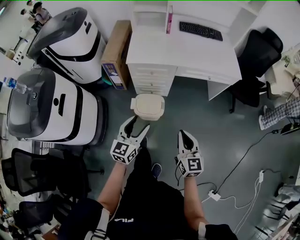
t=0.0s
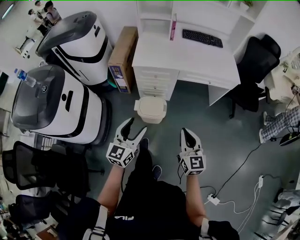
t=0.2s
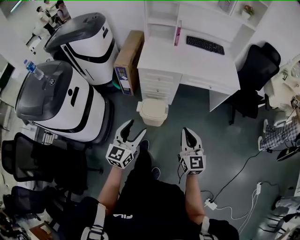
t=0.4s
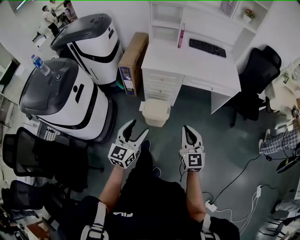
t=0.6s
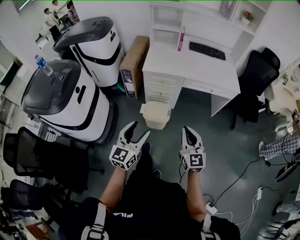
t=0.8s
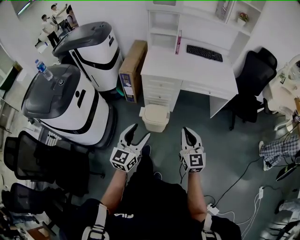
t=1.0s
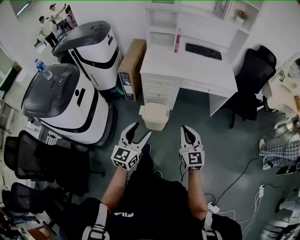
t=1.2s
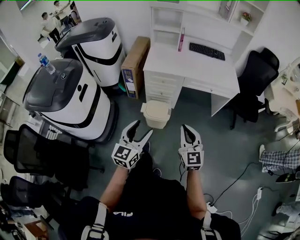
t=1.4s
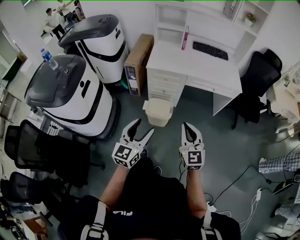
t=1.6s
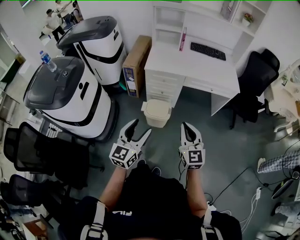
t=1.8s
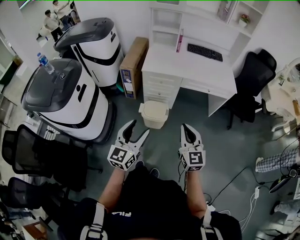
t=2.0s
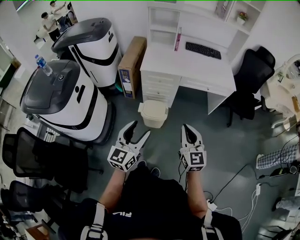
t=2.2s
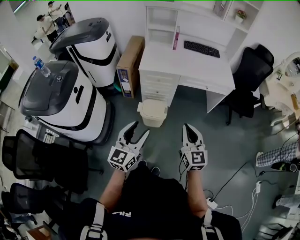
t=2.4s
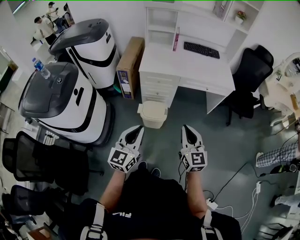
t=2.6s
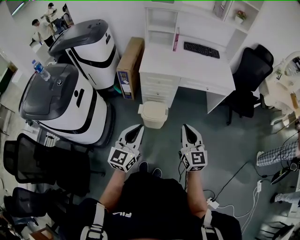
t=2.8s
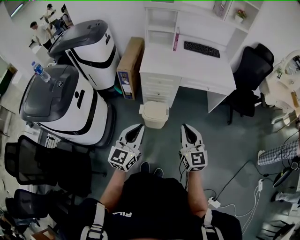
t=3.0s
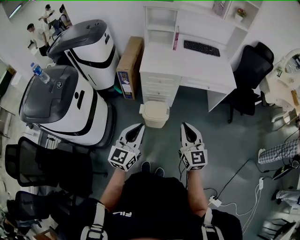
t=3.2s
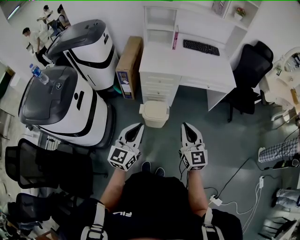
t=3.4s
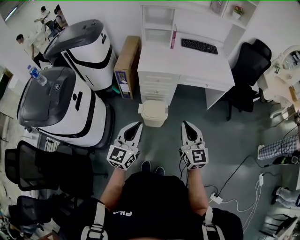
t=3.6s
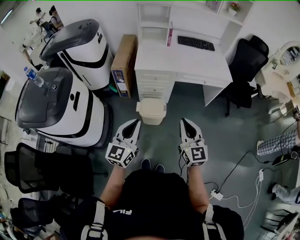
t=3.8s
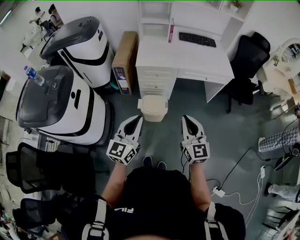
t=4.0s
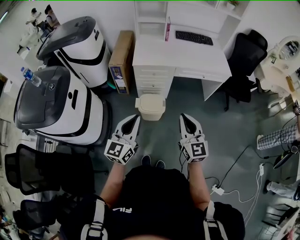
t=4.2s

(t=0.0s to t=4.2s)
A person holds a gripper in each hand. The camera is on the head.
t=0.0s - t=1.4s: Both grippers travel together backward and upward, about 20 cm.
t=1.4s - t=2.8s: The left gripper moves some 5 cm, and closes.
t=2.8s - t=4.2s: The grippers make only small movements.

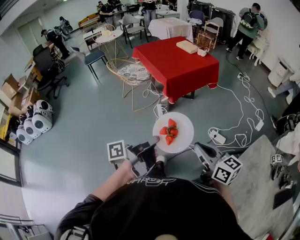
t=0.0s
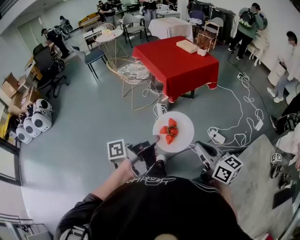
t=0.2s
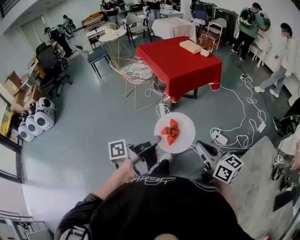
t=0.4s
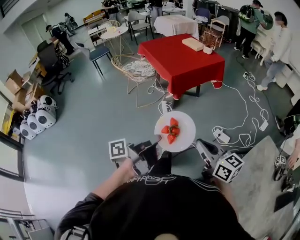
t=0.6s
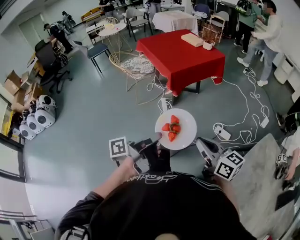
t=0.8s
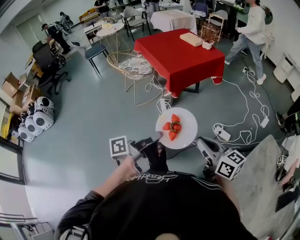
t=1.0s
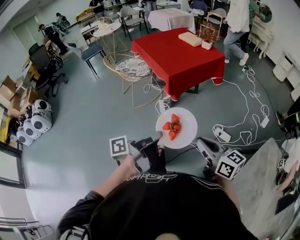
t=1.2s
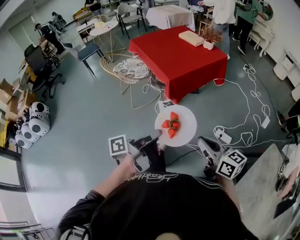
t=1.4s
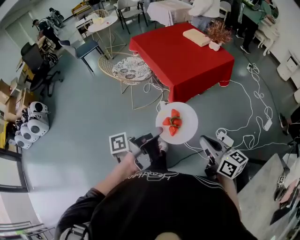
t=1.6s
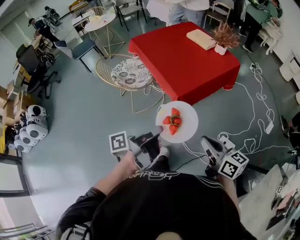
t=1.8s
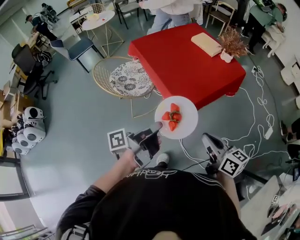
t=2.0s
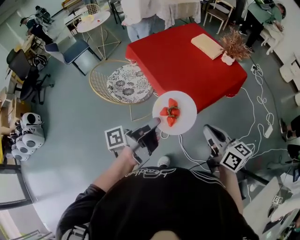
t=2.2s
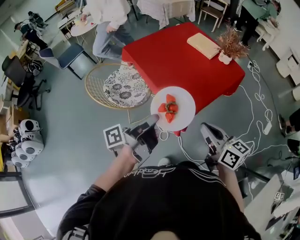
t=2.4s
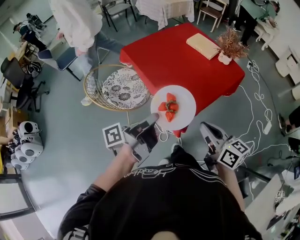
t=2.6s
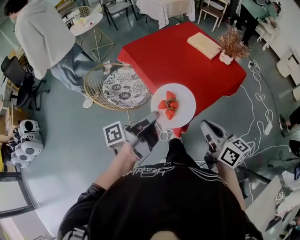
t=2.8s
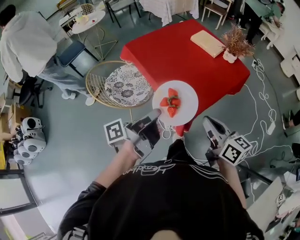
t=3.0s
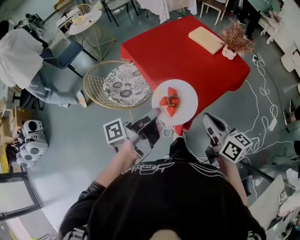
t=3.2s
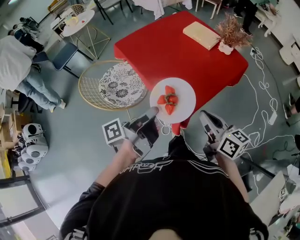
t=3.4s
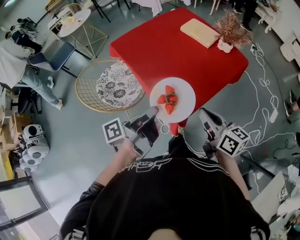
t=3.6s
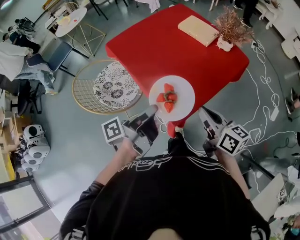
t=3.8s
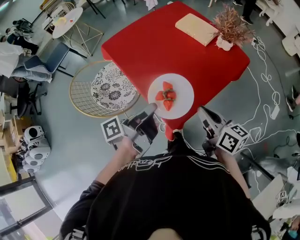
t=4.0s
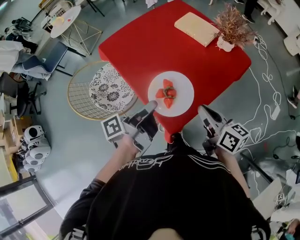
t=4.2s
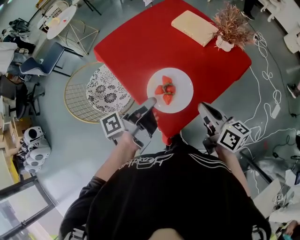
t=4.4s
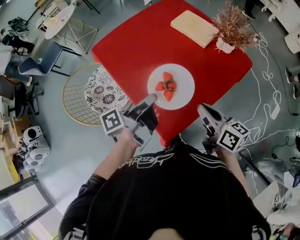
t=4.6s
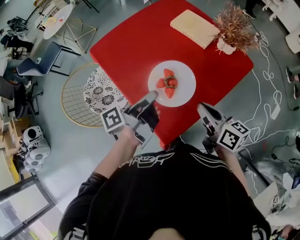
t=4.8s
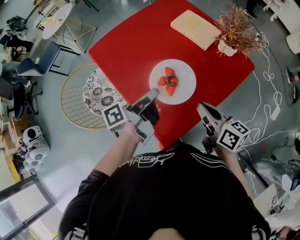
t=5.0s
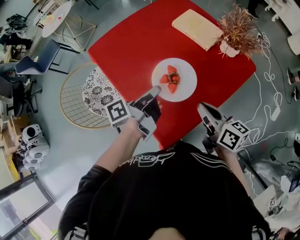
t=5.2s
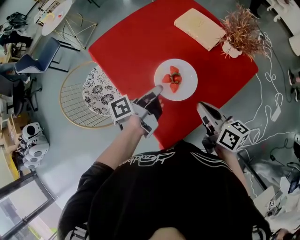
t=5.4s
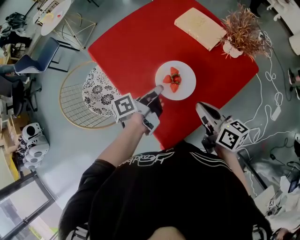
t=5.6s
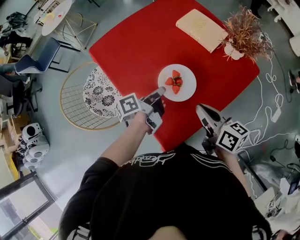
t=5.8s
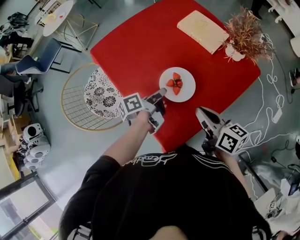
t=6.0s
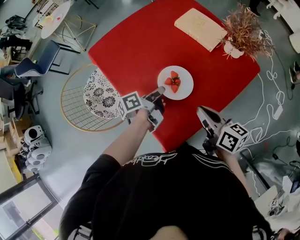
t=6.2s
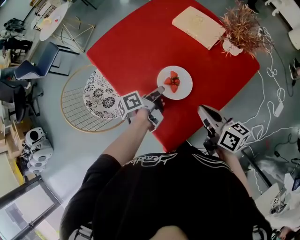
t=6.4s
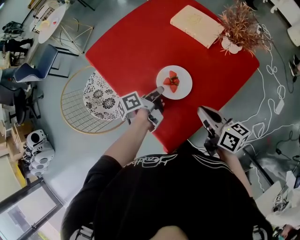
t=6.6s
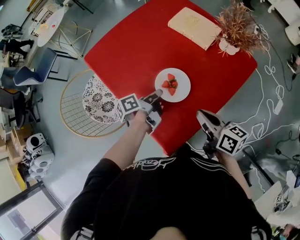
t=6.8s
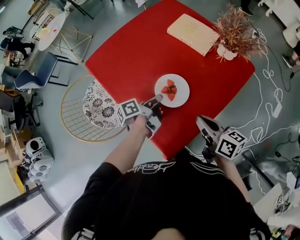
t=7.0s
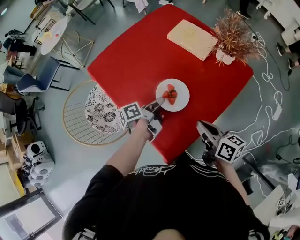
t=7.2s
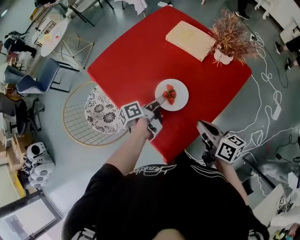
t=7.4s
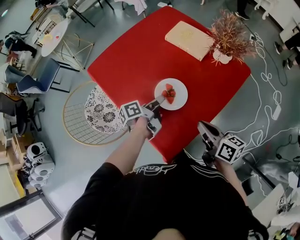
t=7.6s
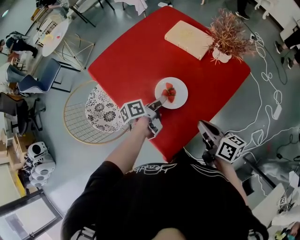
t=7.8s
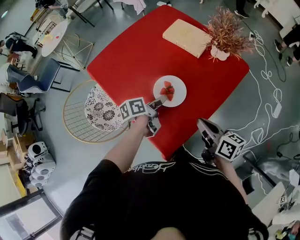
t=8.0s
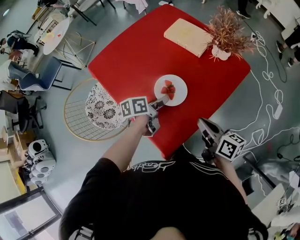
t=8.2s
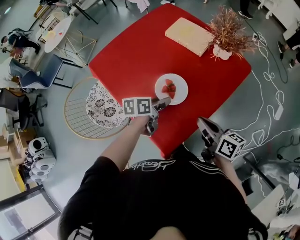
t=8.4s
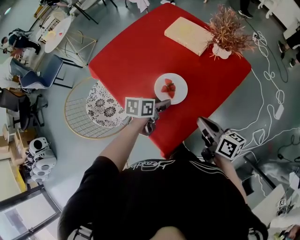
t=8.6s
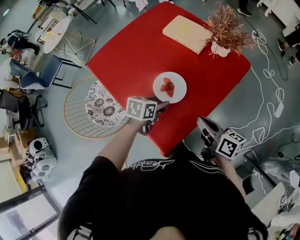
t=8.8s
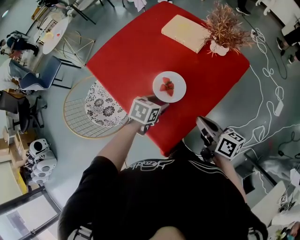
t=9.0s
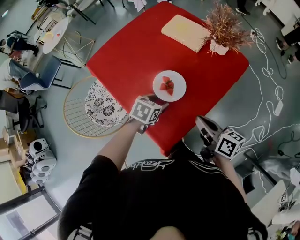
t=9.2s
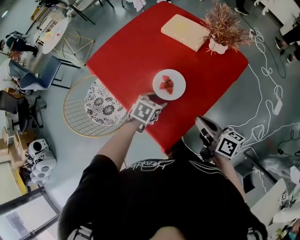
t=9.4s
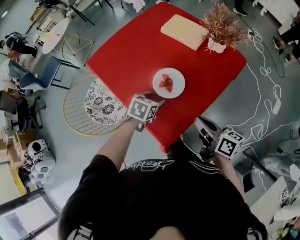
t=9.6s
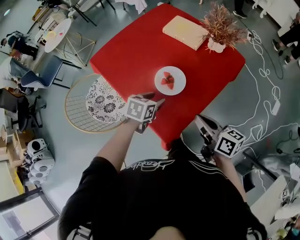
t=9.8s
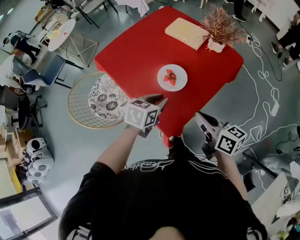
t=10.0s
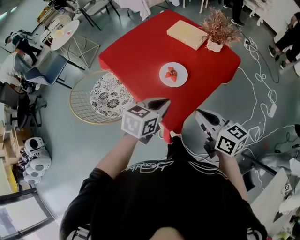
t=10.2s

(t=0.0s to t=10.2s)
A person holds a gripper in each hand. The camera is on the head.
t=0.0s - t=1.4s: Both grippers travel together forward, some 15 cm.
t=1.4s - t=3.0s: The two grippers travel together, forward, some 40 cm.
t=3.0s - t=4.4s: Both grippers travel together forward and to the right, approximately 20 cm.
t=4.4s - t=5.8s: The left gripper travels forward and downward by roughly 15 cm; the right gripper goes some 5 cm forward.
t=5.8s - t=7.2s: The left gripper opens its fingers.
t=7.2s - t=8.8s: The left gripper changes place by roughly 5 cm, twists approximately 60 degrees clockwise, seen from behind, and opens its fingers.
t=8.8s - t=10.2s: The right gripper travels backward and upward by approximately 15 cm, and turns by roughly 20 degrees, while the left gripper shifts some 20 cm upward and backward, changes its angle by about 20 degrees, and closes.

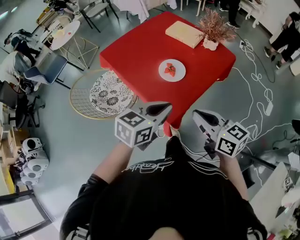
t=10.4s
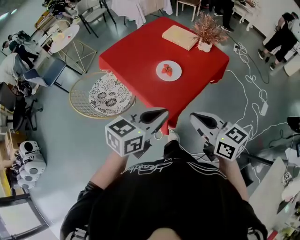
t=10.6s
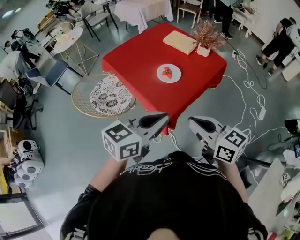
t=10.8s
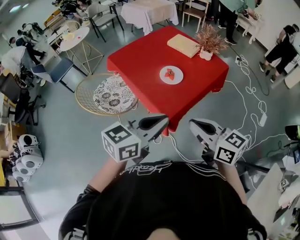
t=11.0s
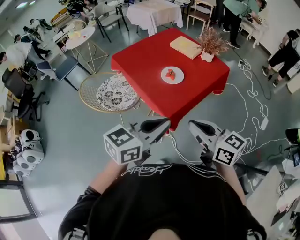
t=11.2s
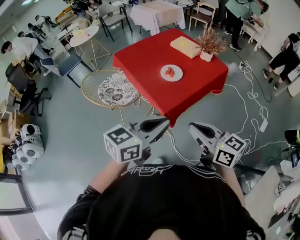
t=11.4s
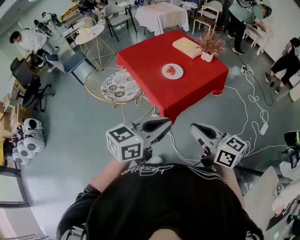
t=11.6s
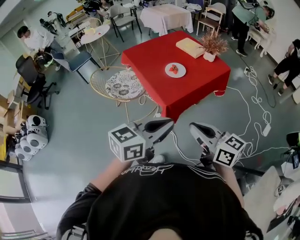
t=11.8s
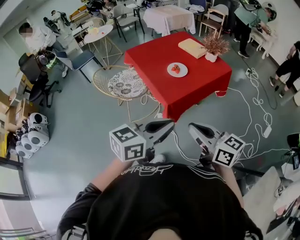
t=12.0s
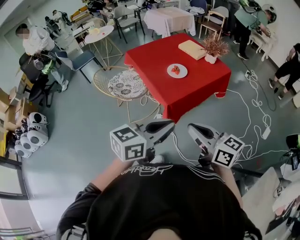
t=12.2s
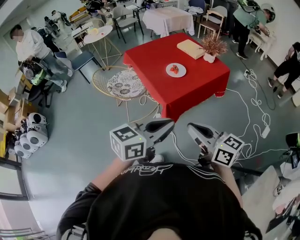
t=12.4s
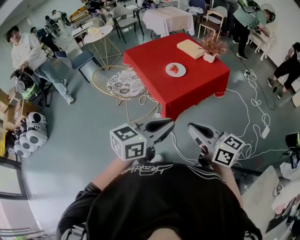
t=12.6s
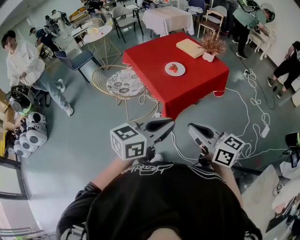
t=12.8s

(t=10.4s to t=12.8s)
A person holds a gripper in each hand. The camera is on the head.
t=10.4s - t=11.6s: The left gripper travels backward and upward by roughly 25 cm. The right gripper shifts approximately 20 cm backward.
t=11.6s - t=12.8s: The grippers stay close to where they were, moving slightly.

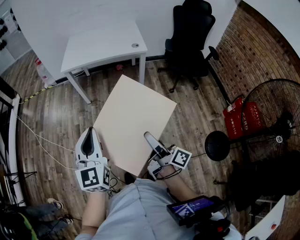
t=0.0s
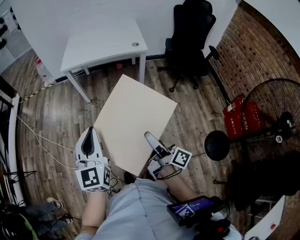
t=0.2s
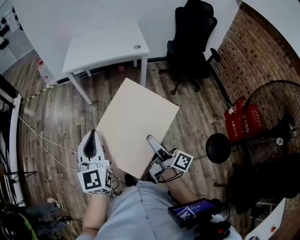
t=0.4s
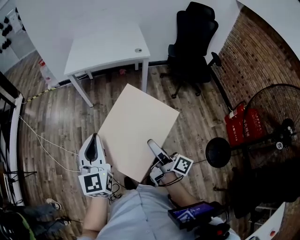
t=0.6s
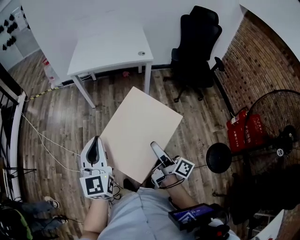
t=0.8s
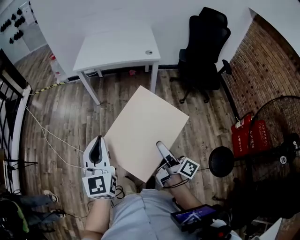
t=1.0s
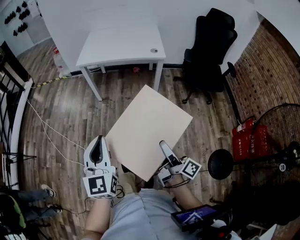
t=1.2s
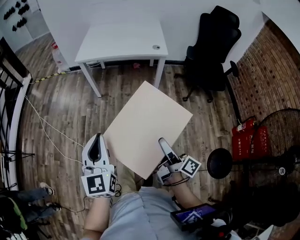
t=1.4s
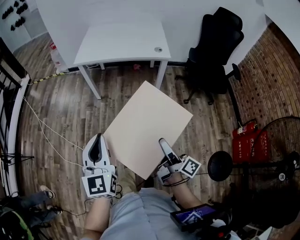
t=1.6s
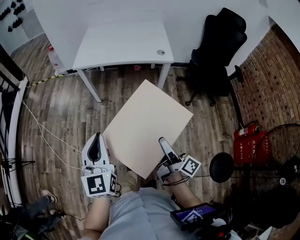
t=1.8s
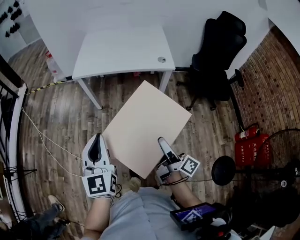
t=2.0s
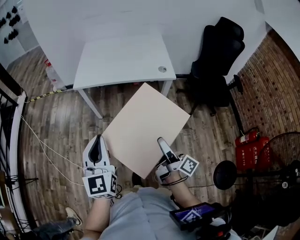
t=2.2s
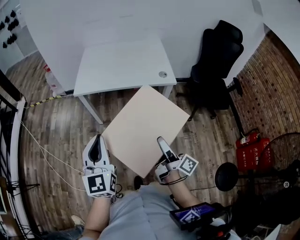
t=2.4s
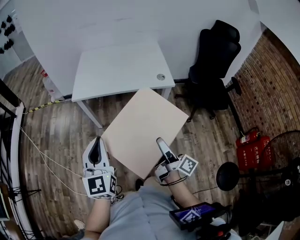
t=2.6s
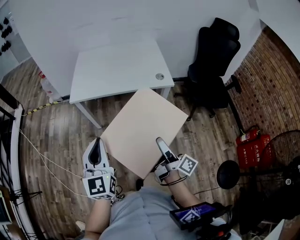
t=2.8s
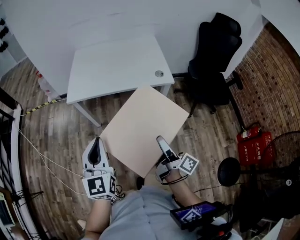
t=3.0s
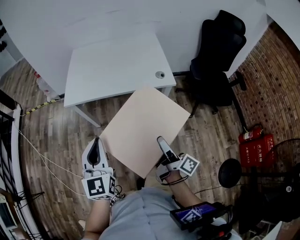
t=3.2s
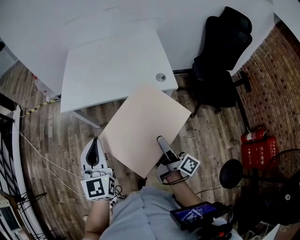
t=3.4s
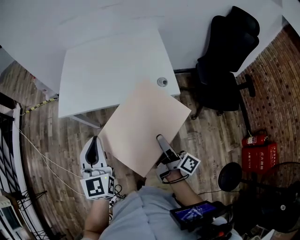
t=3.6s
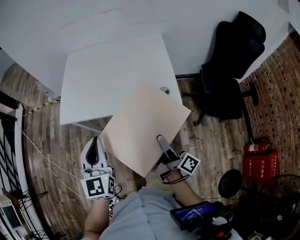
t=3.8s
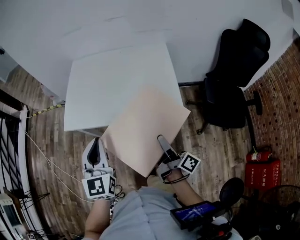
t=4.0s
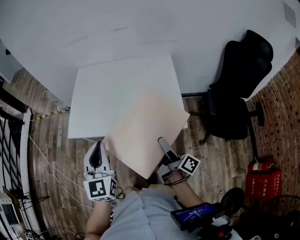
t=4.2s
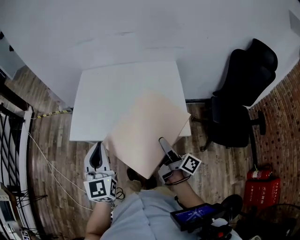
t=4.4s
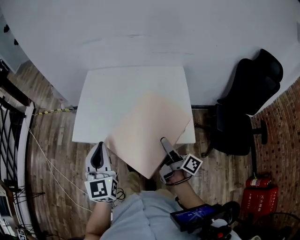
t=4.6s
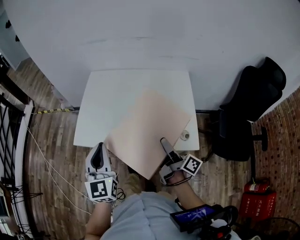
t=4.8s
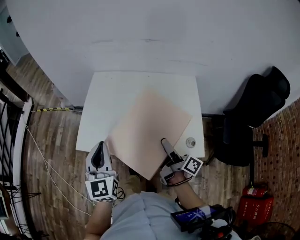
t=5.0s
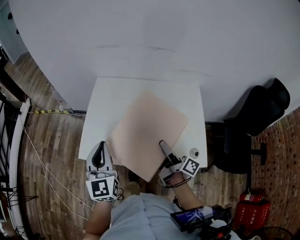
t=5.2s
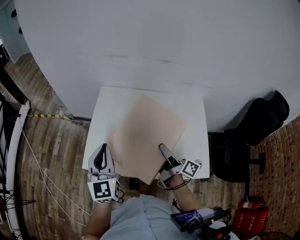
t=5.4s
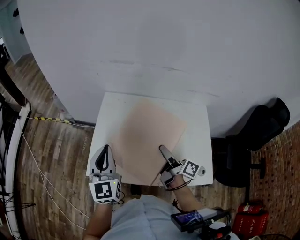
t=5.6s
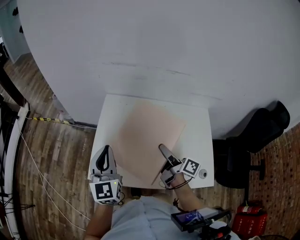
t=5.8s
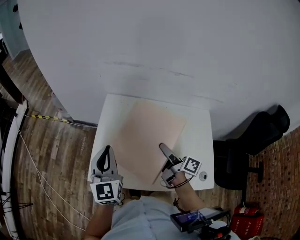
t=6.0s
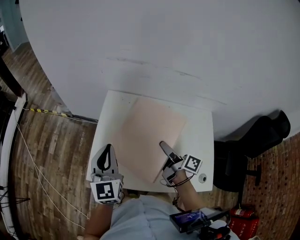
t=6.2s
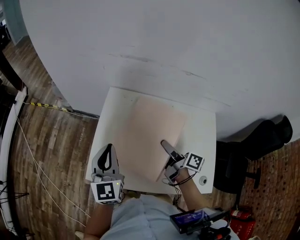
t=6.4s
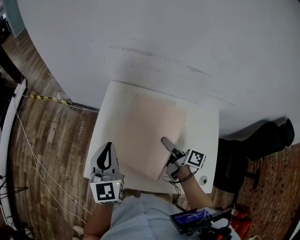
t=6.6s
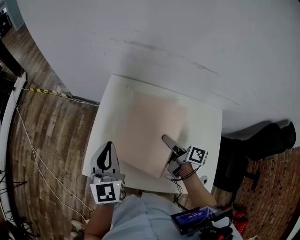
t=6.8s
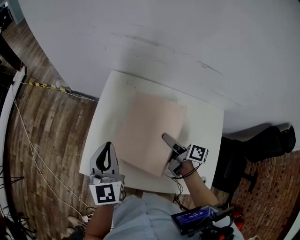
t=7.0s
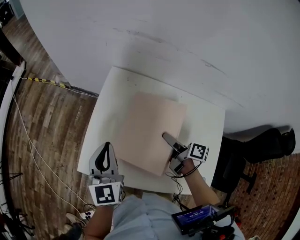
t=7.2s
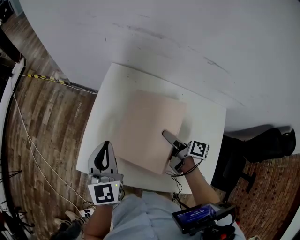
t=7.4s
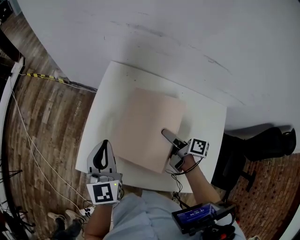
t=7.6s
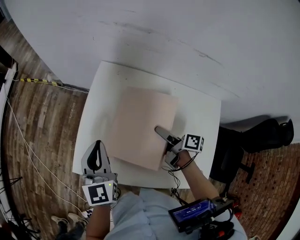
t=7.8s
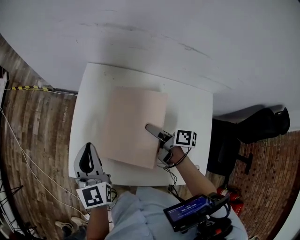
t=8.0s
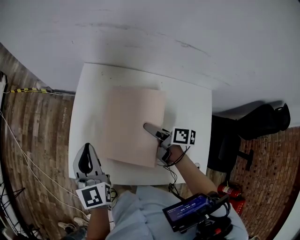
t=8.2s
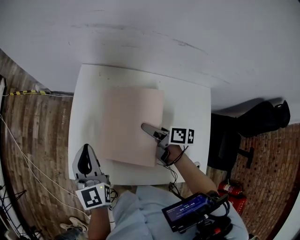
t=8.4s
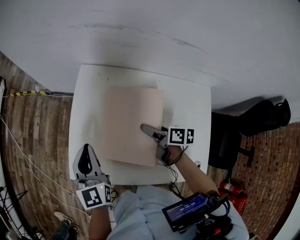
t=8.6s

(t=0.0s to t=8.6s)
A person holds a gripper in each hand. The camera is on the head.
t=0.0s - t=1.4s: The right gripper goes some 5 cm to the right.
t=1.4s - t=2.8s: The two grippers go some 30 cm forward.
t=2.8s - t=4.4s: Both grippers travel together forward, some 35 cm.
t=4.4s - t=5.8s: The grippers both shift forward and to the left by about 35 cm.
t=5.8s - t=7.2s: The grippers both shift downward and forward by approximately 10 cm. The right gripper turns by approximately 30 degrees.
t=7.2s - t=8.6s: The grippers stay close to where they were, moving slightly.
